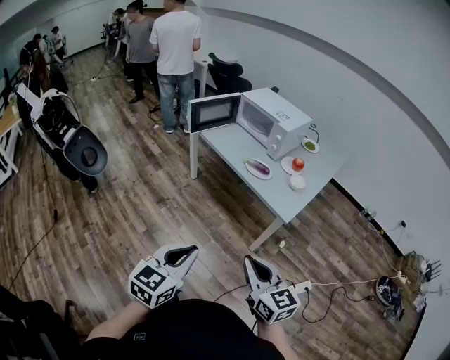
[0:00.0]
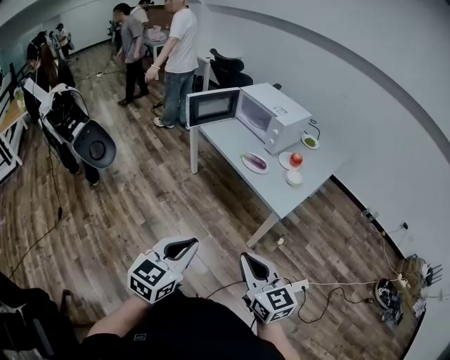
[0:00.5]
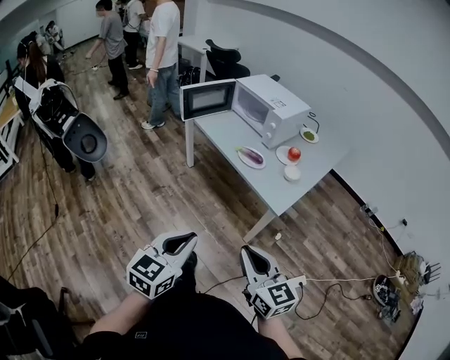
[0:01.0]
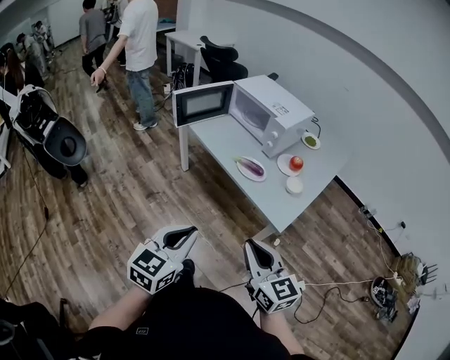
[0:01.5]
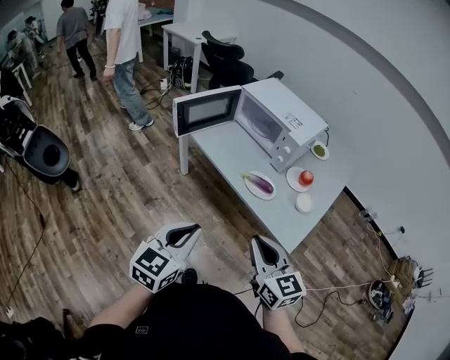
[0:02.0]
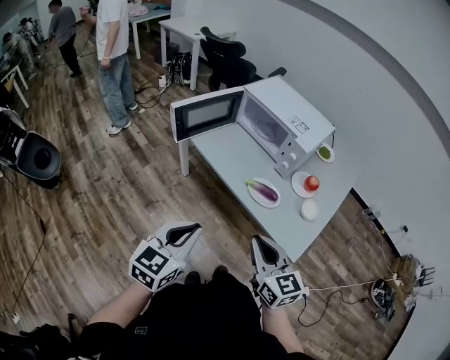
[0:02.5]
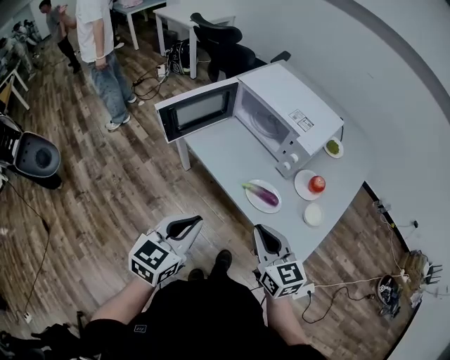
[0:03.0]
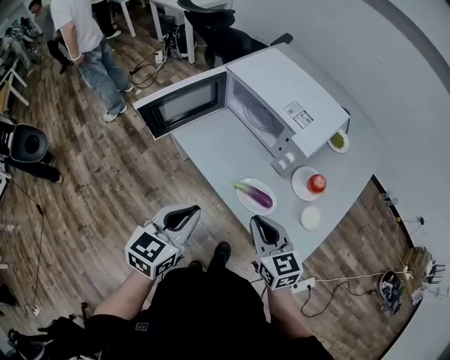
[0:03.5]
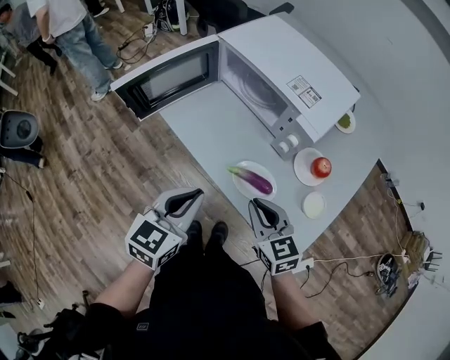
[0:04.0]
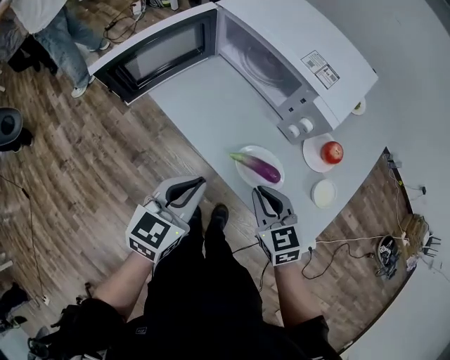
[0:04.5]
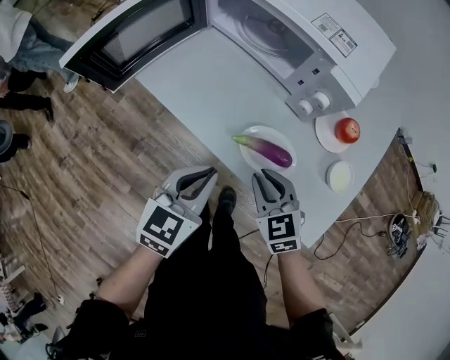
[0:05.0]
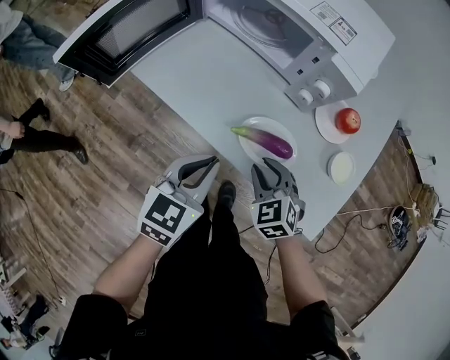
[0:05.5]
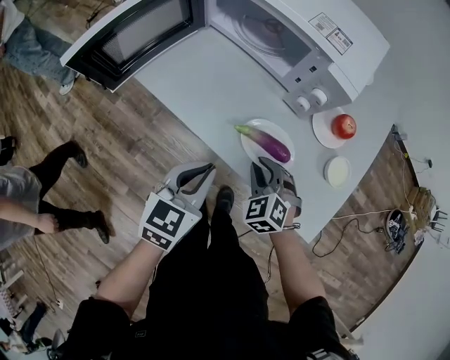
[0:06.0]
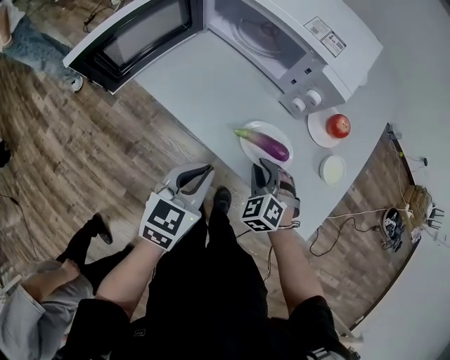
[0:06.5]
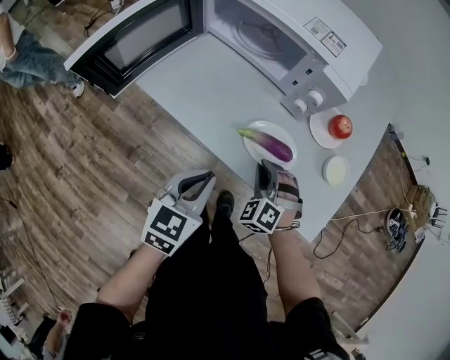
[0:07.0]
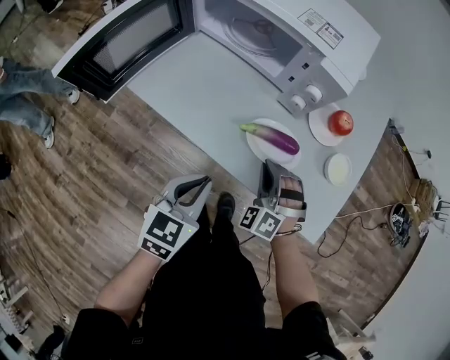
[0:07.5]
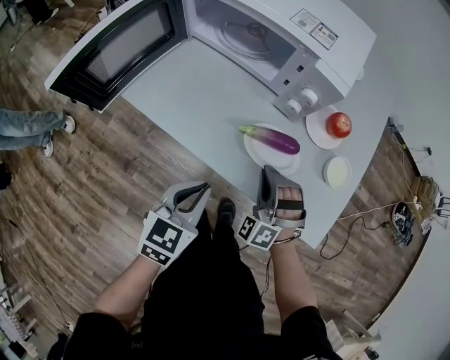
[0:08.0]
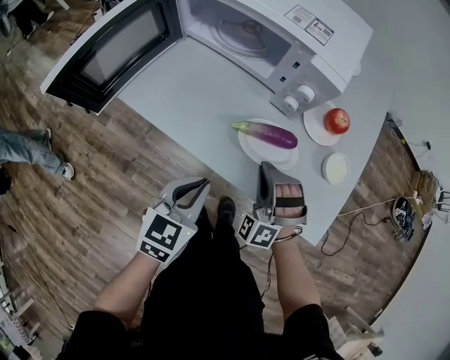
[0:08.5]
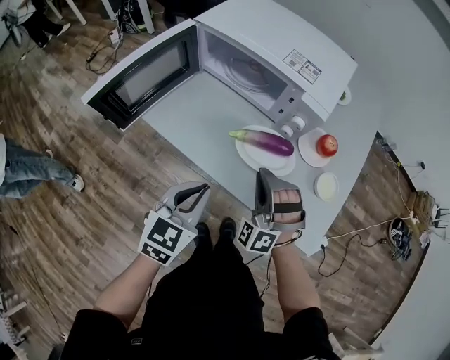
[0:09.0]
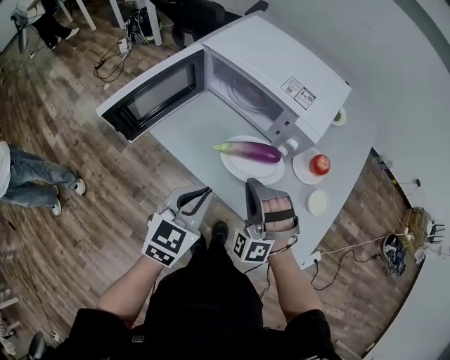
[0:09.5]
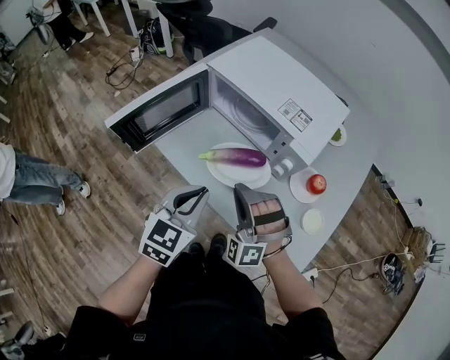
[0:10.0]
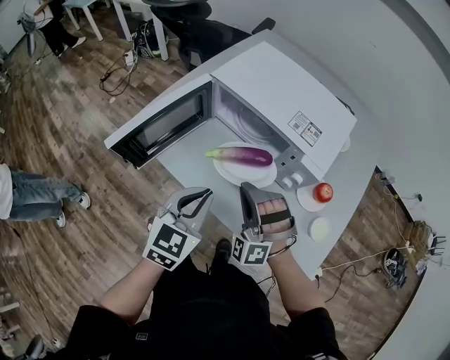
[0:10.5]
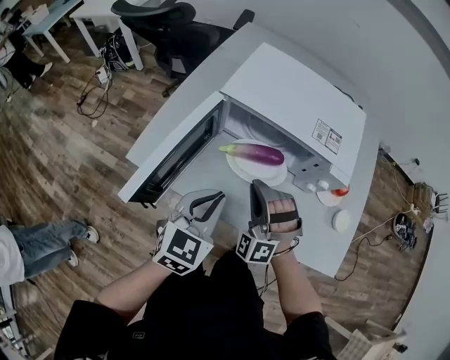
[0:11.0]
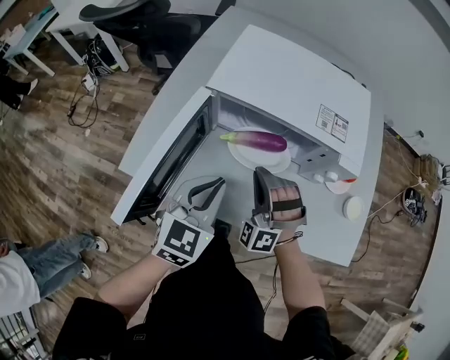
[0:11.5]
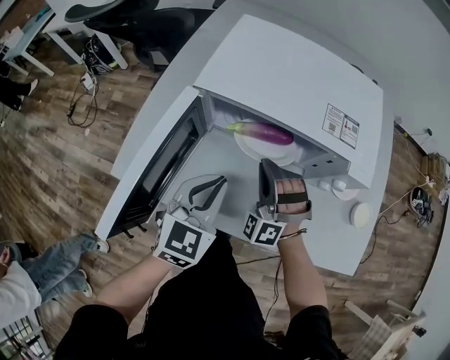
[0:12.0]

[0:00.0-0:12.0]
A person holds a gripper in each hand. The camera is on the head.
0:00.0 to 0:02.0: Both grippers travel together forward, approximately 30 cm.
0:02.0 to 0:04.0: The right gripper is displaced forward and downward by about 30 cm; the left gripper moves forward, about 25 cm.
0:04.0 to 0:06.0: Both grippers travel together downward, roughly 15 cm. The right gripper swivels about 40 degrees.
0:06.0 to 0:08.0: The right gripper changes its angle by approximately 40 degrees.
0:08.0 to 0:10.0: The left gripper heads upward, covering about 15 cm, while the right gripper is displaced upward and to the left by about 20 cm, and swivels about 30 degrees.
0:10.0 to 0:12.0: Both grippers move forward, to the left and downward, approximately 20 cm. The left gripper swivels about 20 degrees, while the right gripper turns by about 30 degrees.

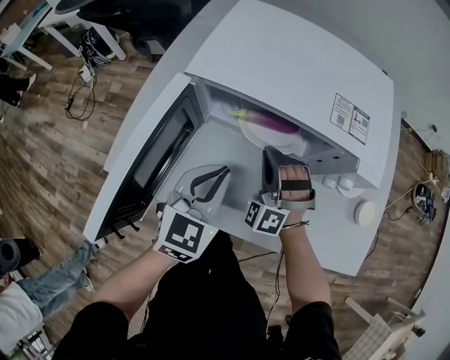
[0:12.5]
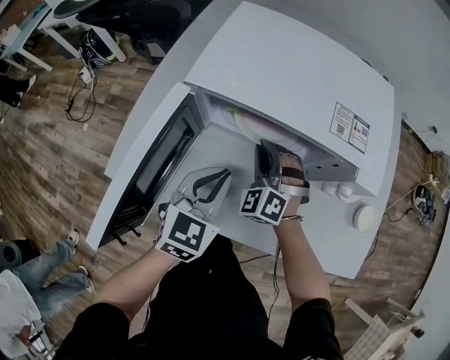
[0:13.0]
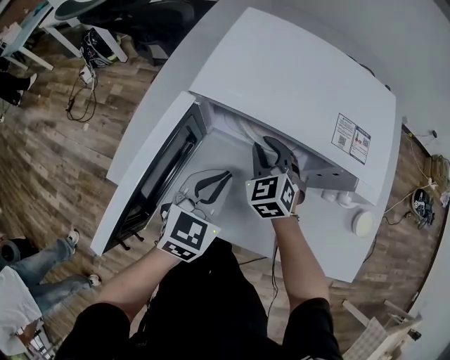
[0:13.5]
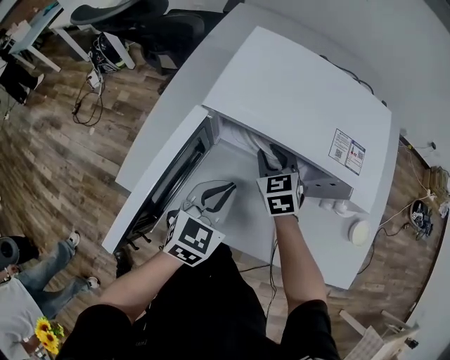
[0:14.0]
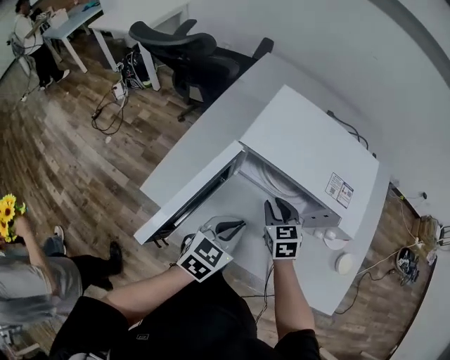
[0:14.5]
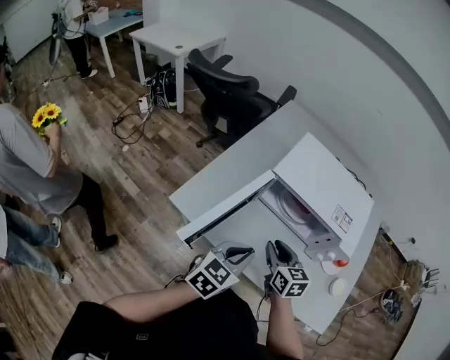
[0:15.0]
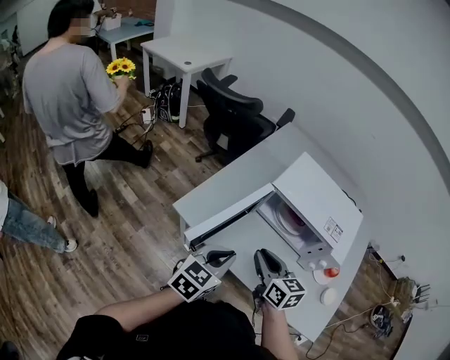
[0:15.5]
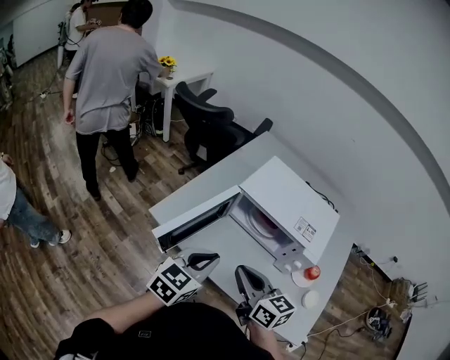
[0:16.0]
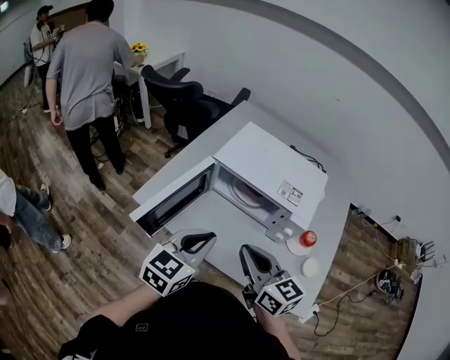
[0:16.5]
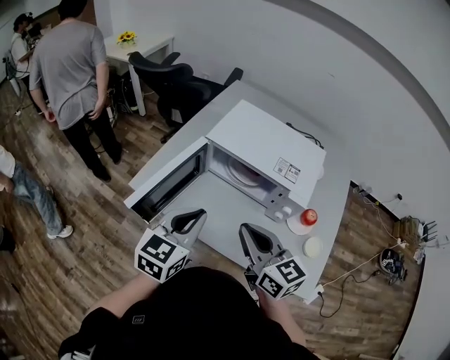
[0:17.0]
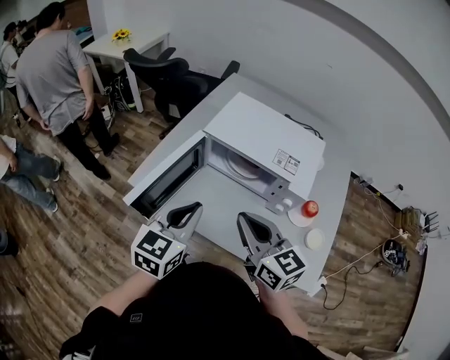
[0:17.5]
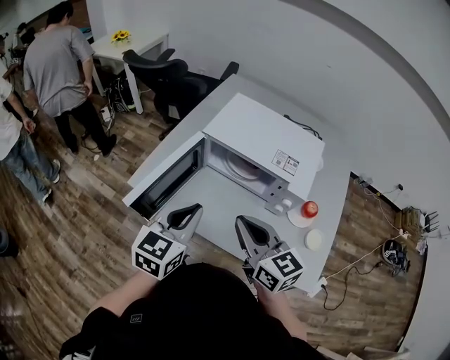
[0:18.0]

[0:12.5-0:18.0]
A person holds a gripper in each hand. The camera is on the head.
0:12.5 to 0:14.5: The right gripper moves about 5 cm forward and comes back, twists roughly 60 degrees clockwise, seen from behind, and opens.
0:14.5 to 0:16.0: The right gripper travels upward and backward by about 30 cm, changes its angle by about 40 degrees, and closes. The left gripper goes approximately 20 cm upward and backward.
0:16.0 to 0:18.0: The right gripper goes approximately 5 cm to the right.

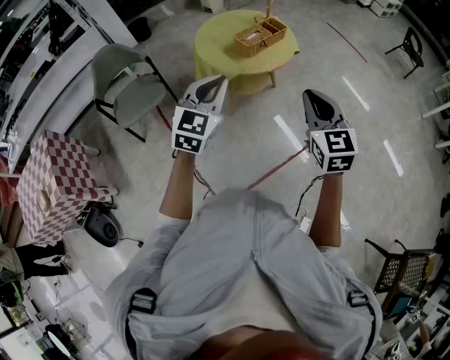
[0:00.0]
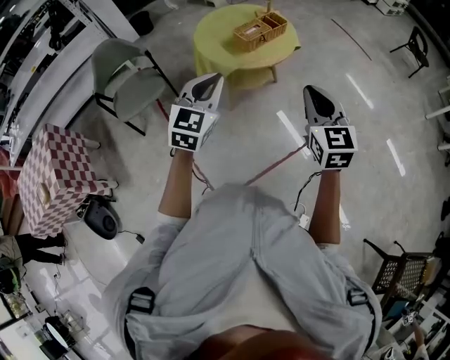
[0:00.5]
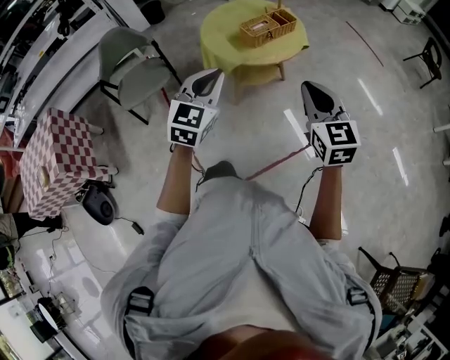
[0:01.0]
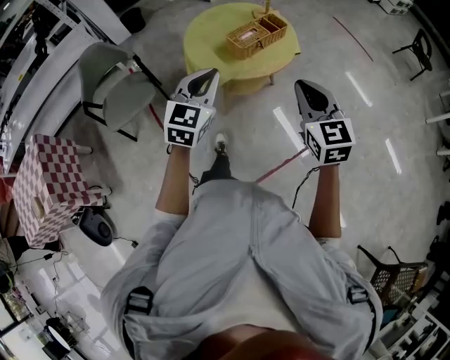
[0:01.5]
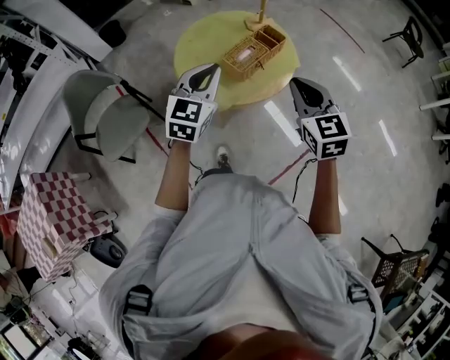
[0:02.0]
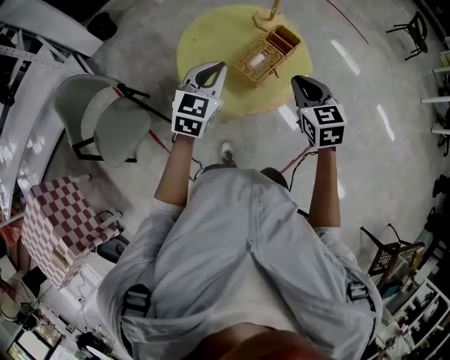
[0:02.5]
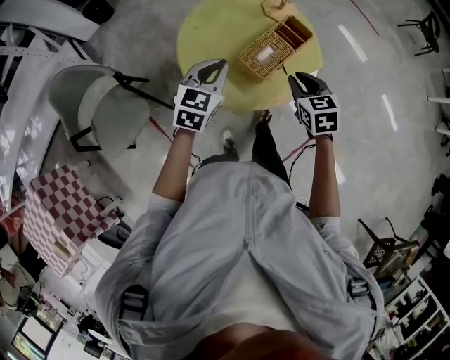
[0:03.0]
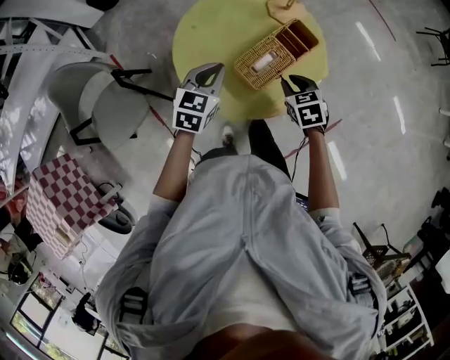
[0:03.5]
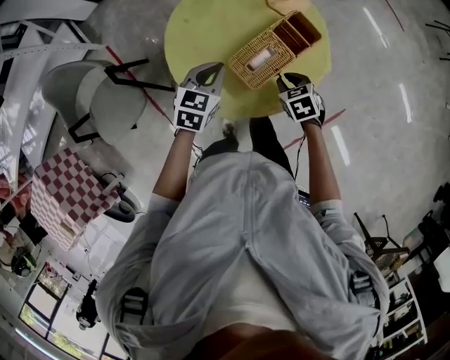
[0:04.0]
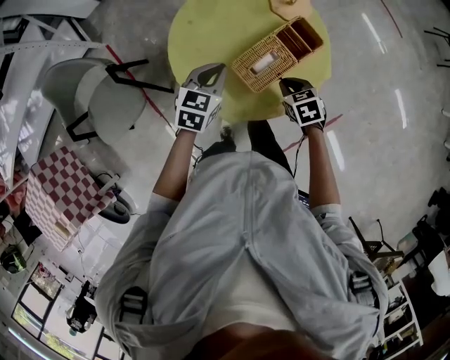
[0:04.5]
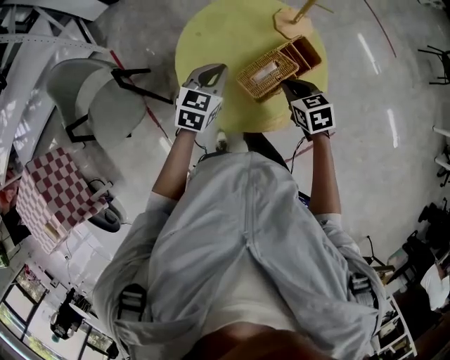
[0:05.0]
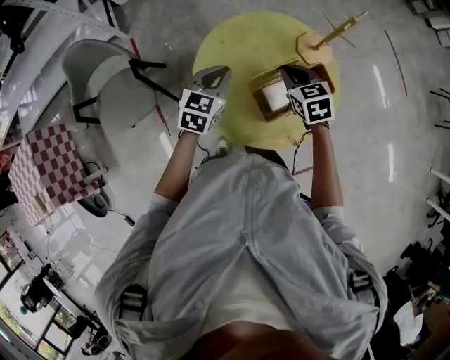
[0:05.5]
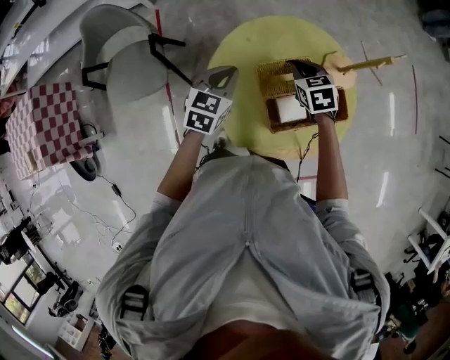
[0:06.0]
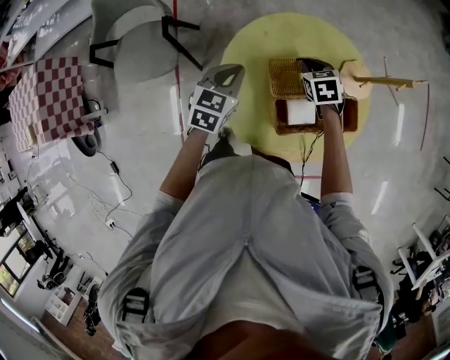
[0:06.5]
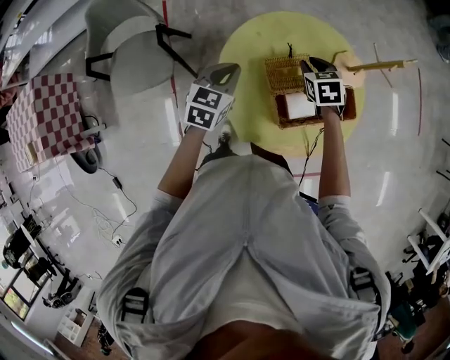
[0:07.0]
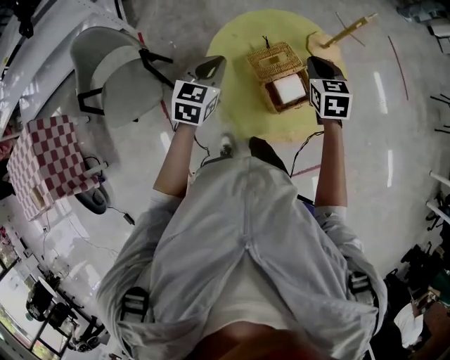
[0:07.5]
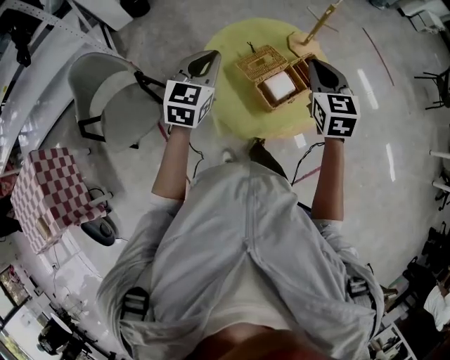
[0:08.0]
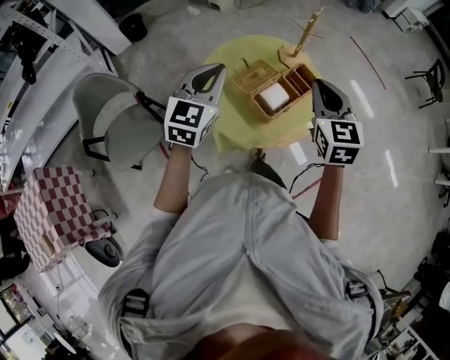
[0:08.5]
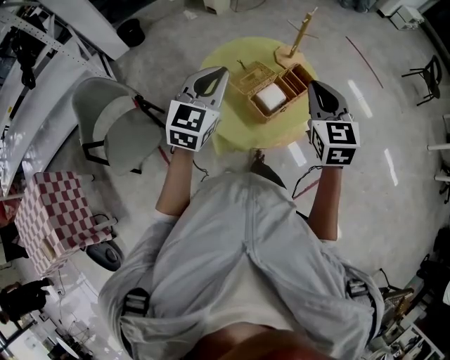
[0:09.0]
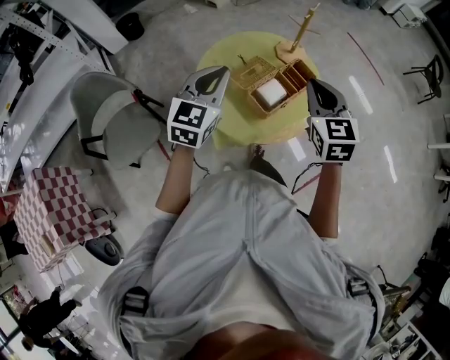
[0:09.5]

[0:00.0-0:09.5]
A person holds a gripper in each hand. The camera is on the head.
0:00.0 to 0:02.0: Both grippers move forward, some 30 cm.
0:02.0 to 0:04.0: The two grippers go roughly 35 cm downward and forward. The right gripper points its fingers roughly 40 degrees further downward, while the left gripper changes its angle by approximately 30 degrees.
0:04.0 to 0:05.5: The left gripper shifts roughly 10 cm to the left, upward and forward, while the right gripper moves upward, forward and to the left, about 20 cm, and swivels roughly 20 degrees.
0:05.5 to 0:07.5: The right gripper travels downward and back again, approximately 10 cm each way; the left gripper shifts some 5 cm to the left.
0:07.5 to 0:09.5: The right gripper heads backward and upward, covering approximately 25 cm, and rotates approximately 20 degrees; the left gripper heads upward, backward and to the right, covering about 20 cm, and rotates roughly 20 degrees.
